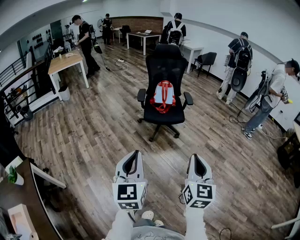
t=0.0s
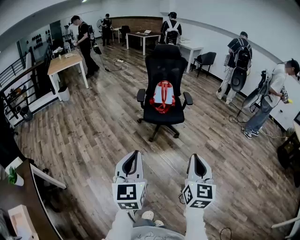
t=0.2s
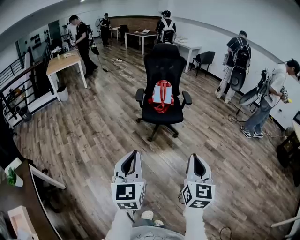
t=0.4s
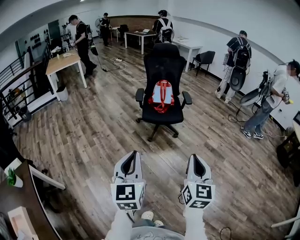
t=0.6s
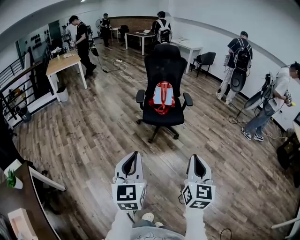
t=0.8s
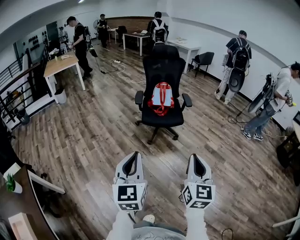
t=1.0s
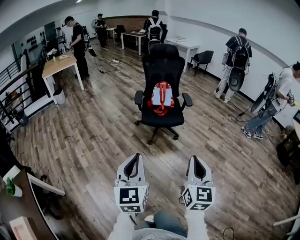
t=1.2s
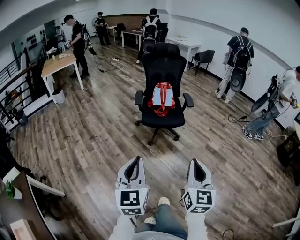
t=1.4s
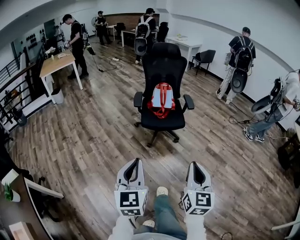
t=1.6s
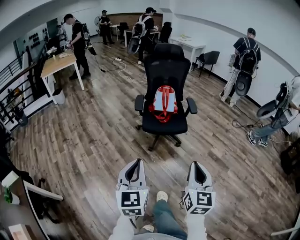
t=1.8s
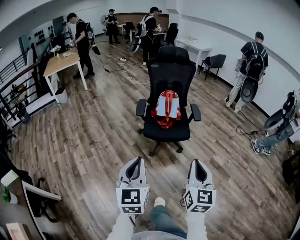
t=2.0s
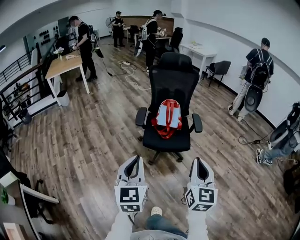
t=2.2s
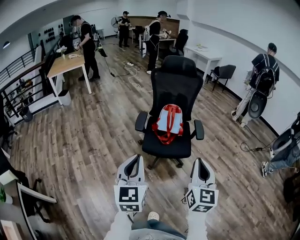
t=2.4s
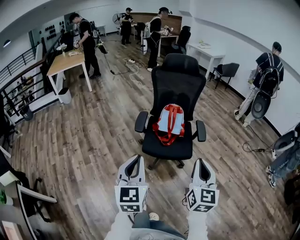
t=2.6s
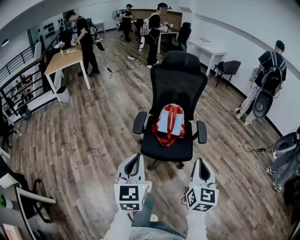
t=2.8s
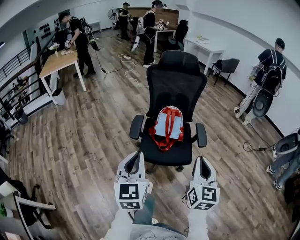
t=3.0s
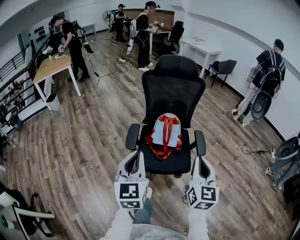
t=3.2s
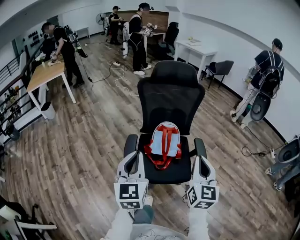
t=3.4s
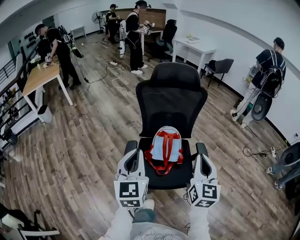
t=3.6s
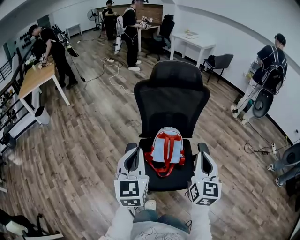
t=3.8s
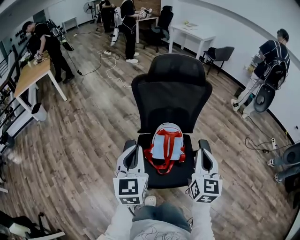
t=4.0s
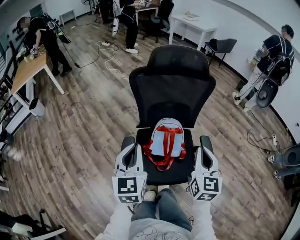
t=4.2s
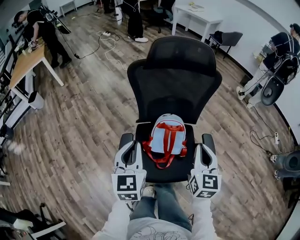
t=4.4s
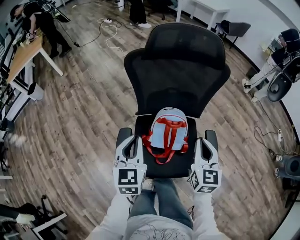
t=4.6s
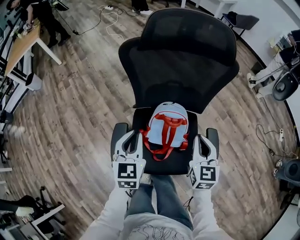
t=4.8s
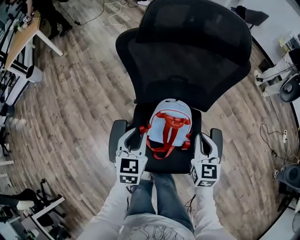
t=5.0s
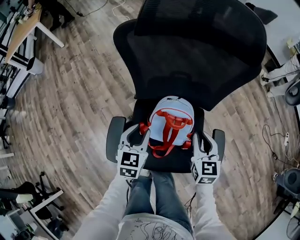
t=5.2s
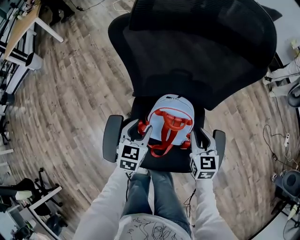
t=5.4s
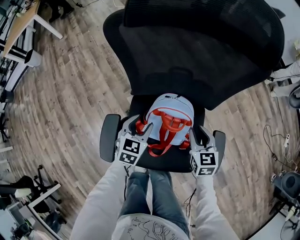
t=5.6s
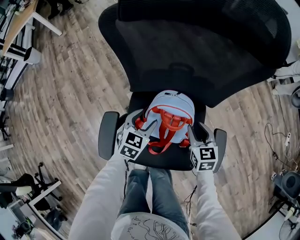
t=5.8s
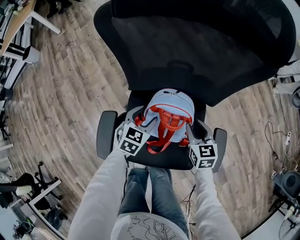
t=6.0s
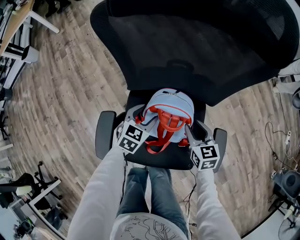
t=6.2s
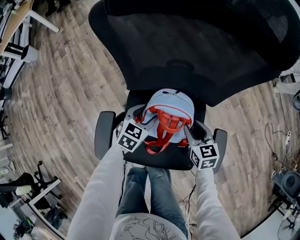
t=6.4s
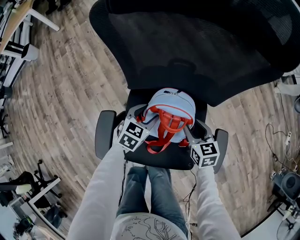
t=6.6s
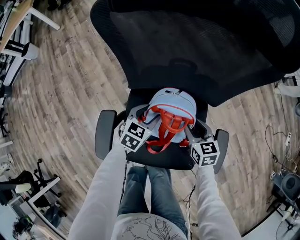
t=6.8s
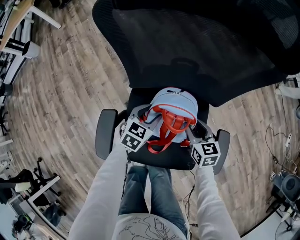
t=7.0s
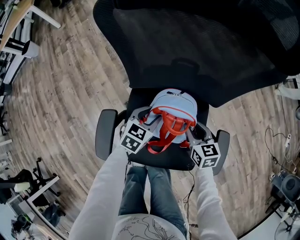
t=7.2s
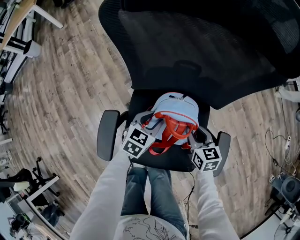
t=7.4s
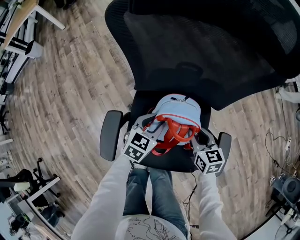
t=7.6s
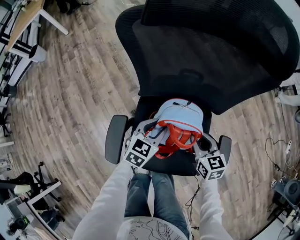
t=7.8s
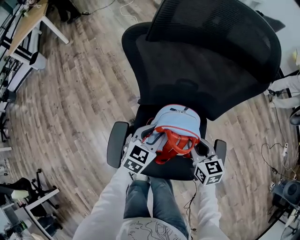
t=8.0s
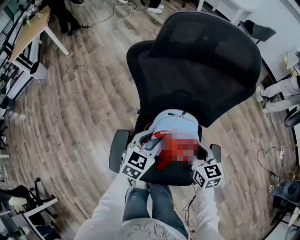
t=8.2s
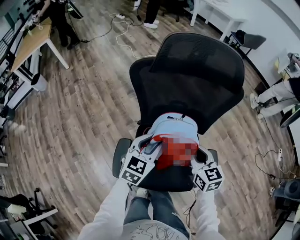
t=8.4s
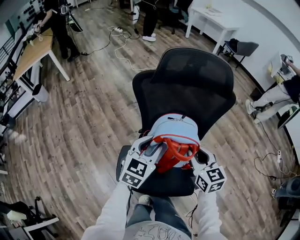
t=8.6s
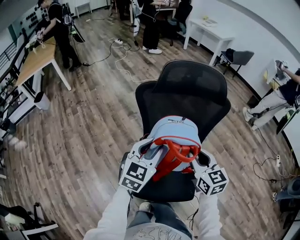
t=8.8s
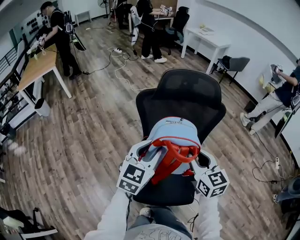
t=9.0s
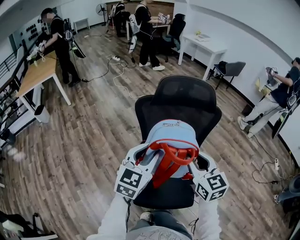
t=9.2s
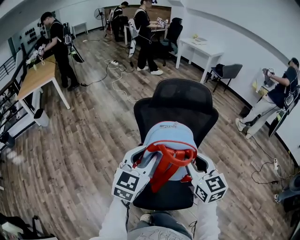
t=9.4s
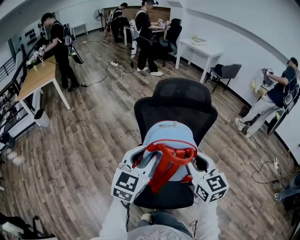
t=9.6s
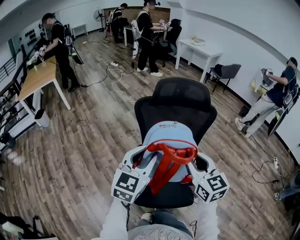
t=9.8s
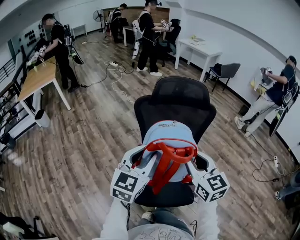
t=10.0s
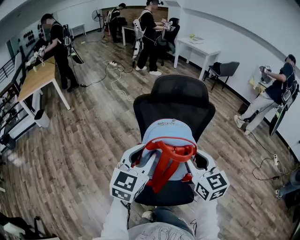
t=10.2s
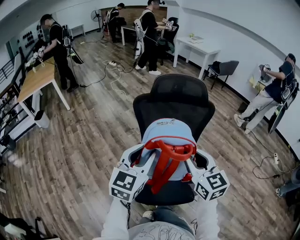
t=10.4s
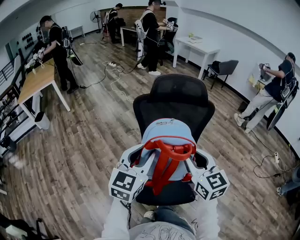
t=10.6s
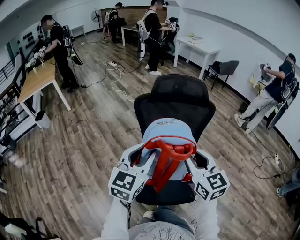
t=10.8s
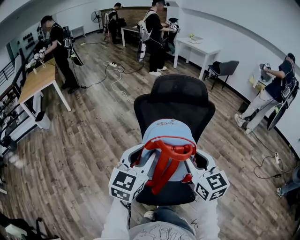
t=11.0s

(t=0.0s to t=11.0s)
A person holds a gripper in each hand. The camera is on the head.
t=0.0s - t=1.6s: The grippers both shift forward by approximately 10 cm.
t=1.6s - t=3.2s: The two grippers travel together, forward, some 50 cm.
t=3.2s - t=4.8s: Both grippers travel together forward and downward, about 40 cm. The right gripper swivels approximately 20 degrees. Meanwhile the left gripper rotates some 20 degrees.
t=4.8s - t=6.2s: Both grippers move downward, about 25 cm. The left gripper swivels some 30 degrees, and opens. The right gripper swivels some 30 degrees, and opens its fingers.
t=6.2s - t=7.8s: The left gripper is displaced upward by about 5 cm, and closes.
t=7.8s - t=9.4s: Both grippers travel together upward, about 40 cm. The right gripper turns by some 30 degrees. The left gripper swivels roughly 30 degrees.
t=9.4s - t=11.0s: The left gripper ends up approximately 5 cm from where it was.

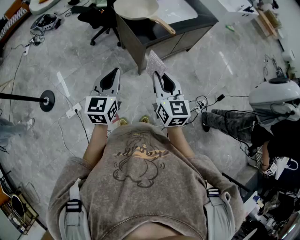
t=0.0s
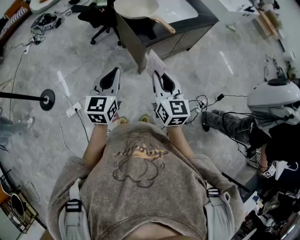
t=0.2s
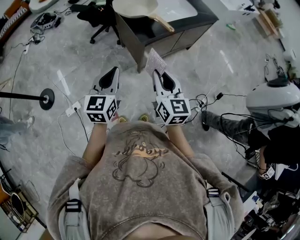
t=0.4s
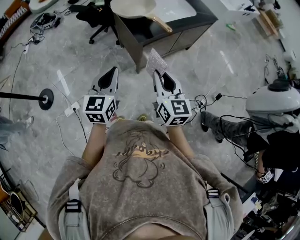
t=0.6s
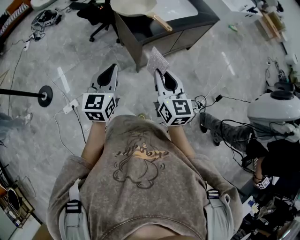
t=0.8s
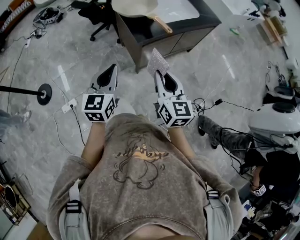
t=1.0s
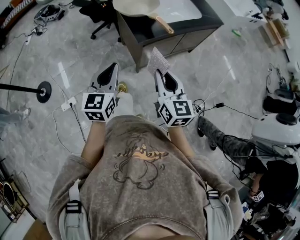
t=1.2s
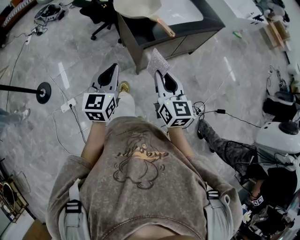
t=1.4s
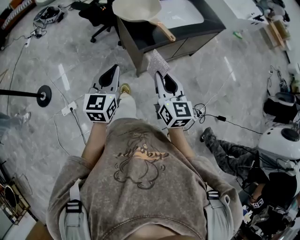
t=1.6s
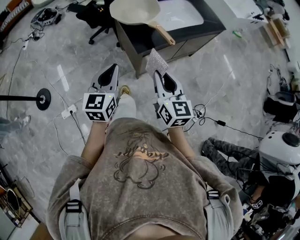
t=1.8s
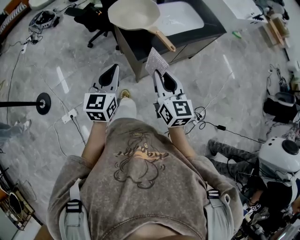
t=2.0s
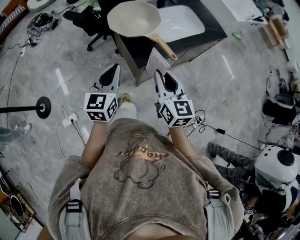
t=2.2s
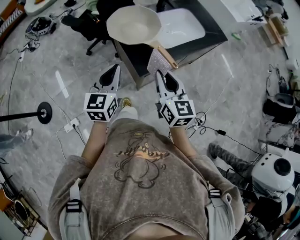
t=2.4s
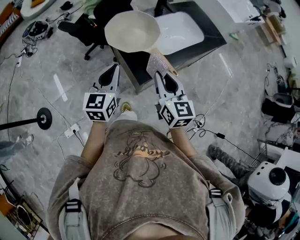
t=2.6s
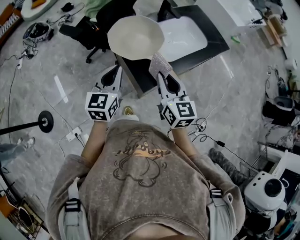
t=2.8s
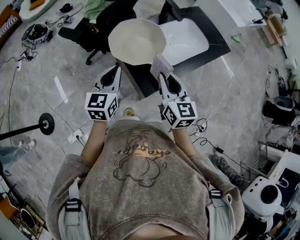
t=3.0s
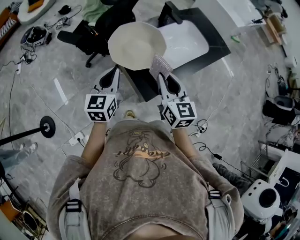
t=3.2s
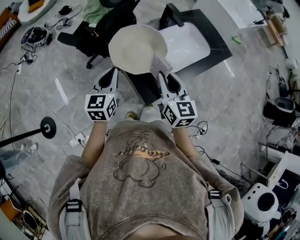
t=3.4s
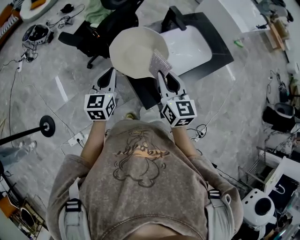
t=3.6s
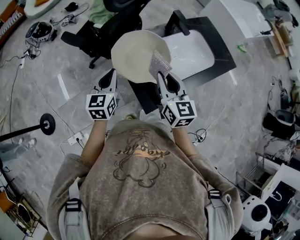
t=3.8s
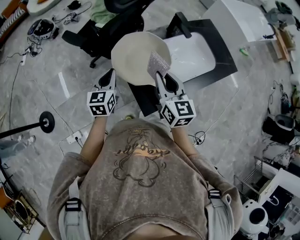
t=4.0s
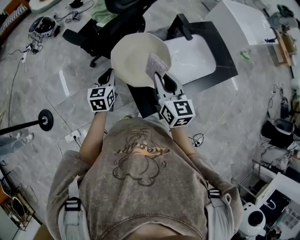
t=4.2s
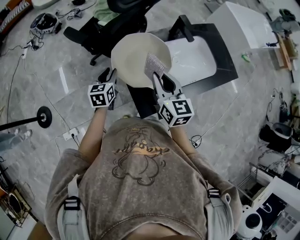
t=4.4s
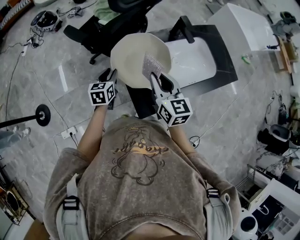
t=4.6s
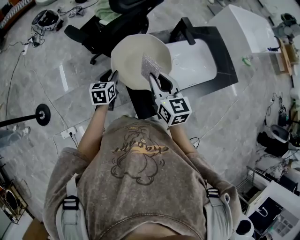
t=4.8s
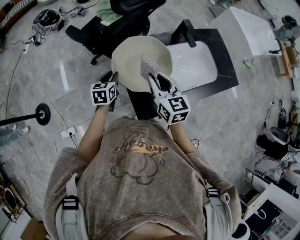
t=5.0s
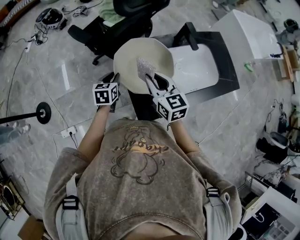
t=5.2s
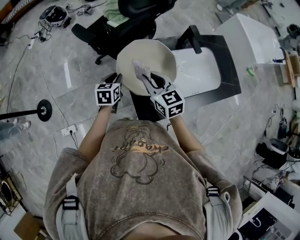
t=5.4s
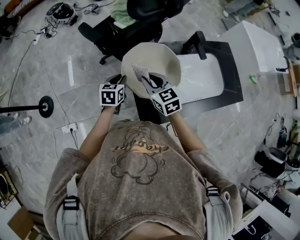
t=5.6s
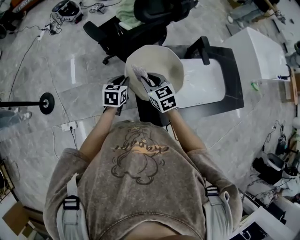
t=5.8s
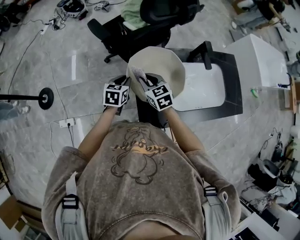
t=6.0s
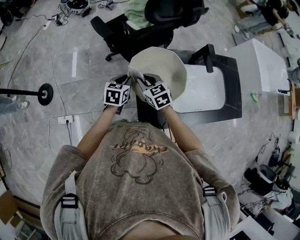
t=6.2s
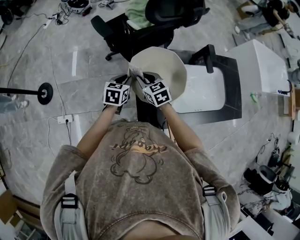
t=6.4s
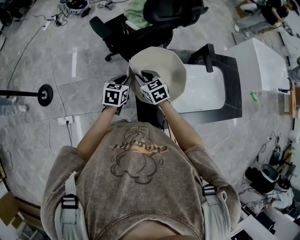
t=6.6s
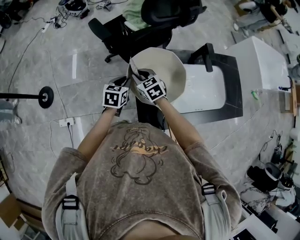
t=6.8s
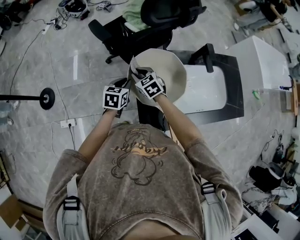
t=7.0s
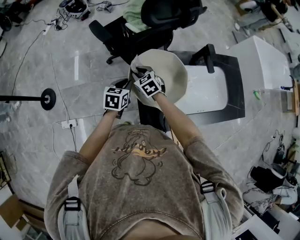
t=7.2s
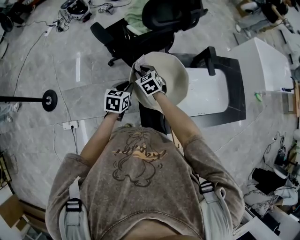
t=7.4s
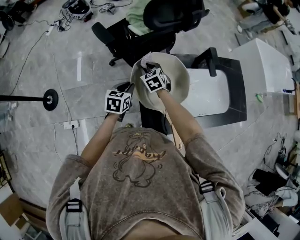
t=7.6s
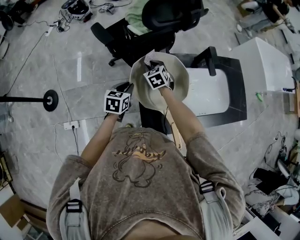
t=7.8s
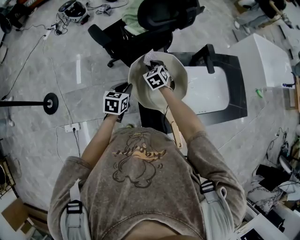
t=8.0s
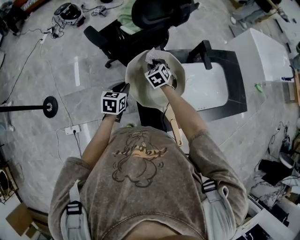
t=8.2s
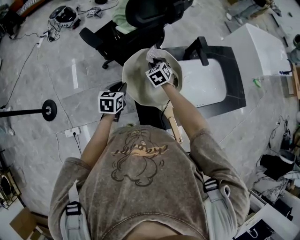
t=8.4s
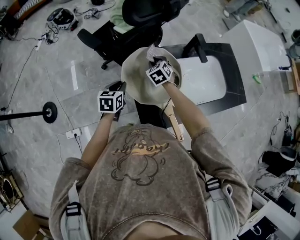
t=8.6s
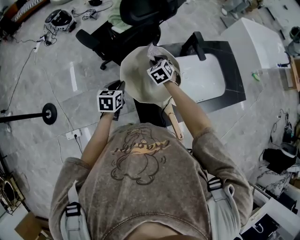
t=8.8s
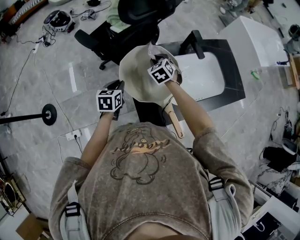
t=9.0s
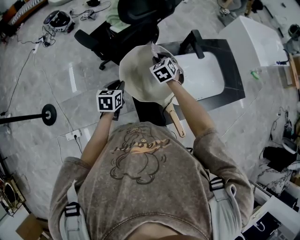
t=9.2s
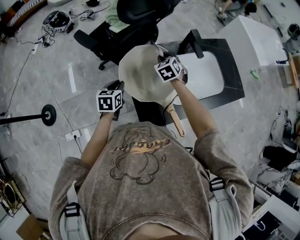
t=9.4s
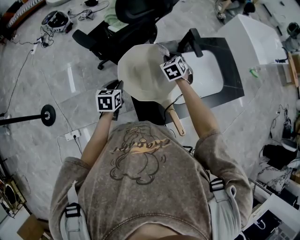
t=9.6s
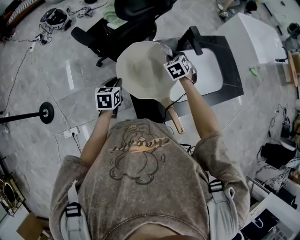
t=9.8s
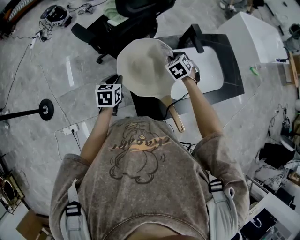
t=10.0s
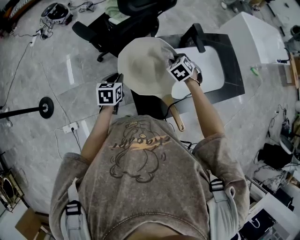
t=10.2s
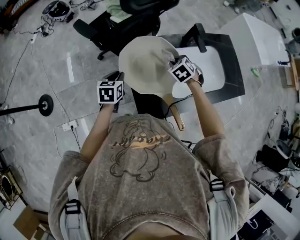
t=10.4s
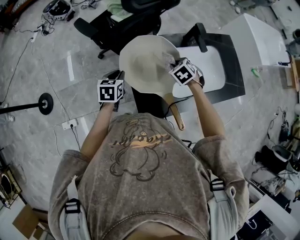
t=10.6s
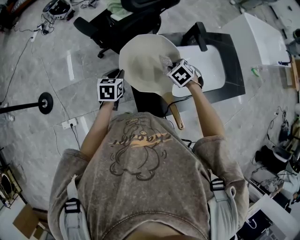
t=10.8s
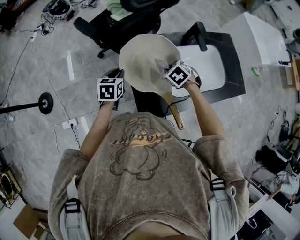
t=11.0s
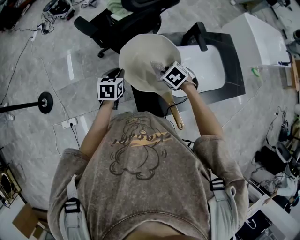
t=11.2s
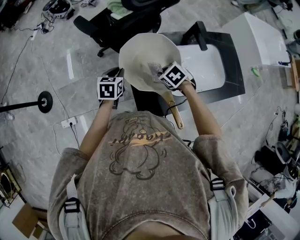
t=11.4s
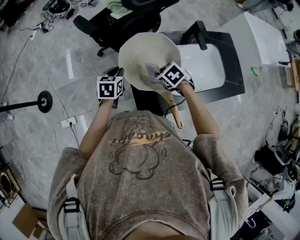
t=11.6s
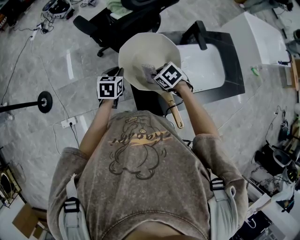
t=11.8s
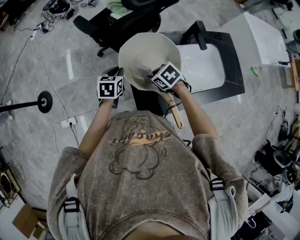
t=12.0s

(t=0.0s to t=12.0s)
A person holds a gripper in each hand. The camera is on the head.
t=0.0s - t=1.6s: The two grippers go approximately 10 cm forward.
t=1.6s - t=3.0s: The grippers both shift forward by some 30 cm.
t=3.0s - t=4.4s: The left gripper goes approximately 20 cm forward and downward, turns by roughly 20 degrees, and opens. Meanwhile the right gripper shifts approximately 15 cm forward.
t=4.4s - t=6.0s: The right gripper shifts roughly 20 cm downward, to the left and forward, and rotates about 40 degrees.
t=6.0s - t=7.6s: The right gripper shifts about 10 cm forward and downward.
t=7.6s - t=9.0s: The right gripper heads to the right, covering approximately 10 cm.
t=9.0s - t=10.4s: The right gripper travels to the right by about 10 cm.
t=10.4s - t=12.0s: The right gripper moves some 15 cm, and turns by roughly 30 degrees.

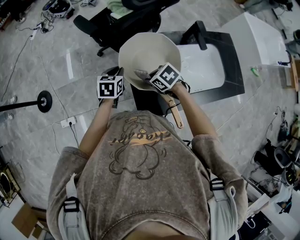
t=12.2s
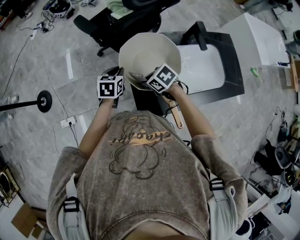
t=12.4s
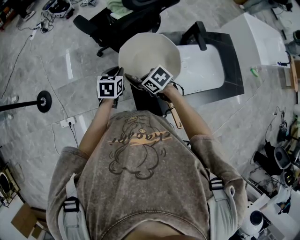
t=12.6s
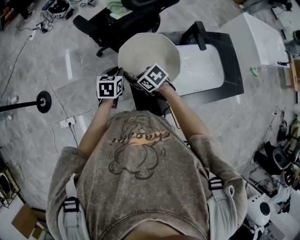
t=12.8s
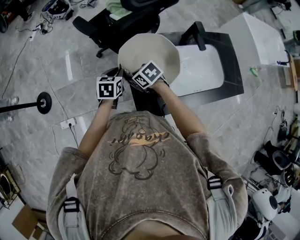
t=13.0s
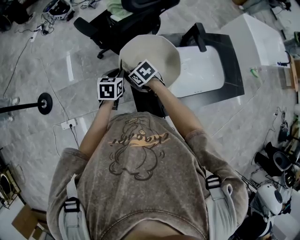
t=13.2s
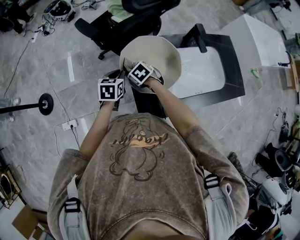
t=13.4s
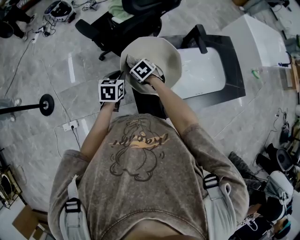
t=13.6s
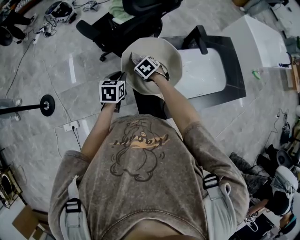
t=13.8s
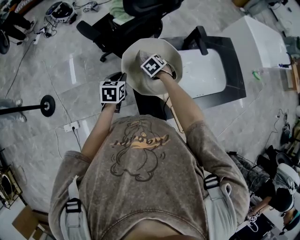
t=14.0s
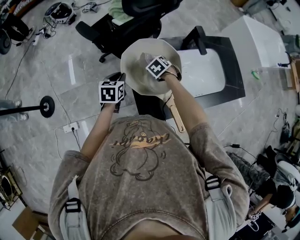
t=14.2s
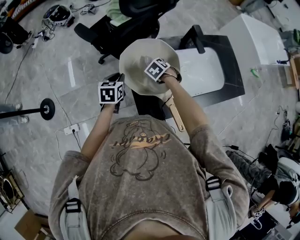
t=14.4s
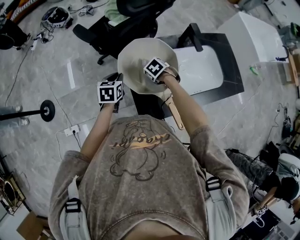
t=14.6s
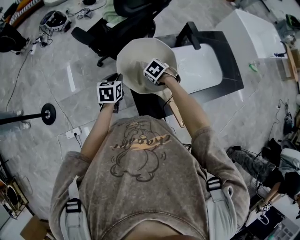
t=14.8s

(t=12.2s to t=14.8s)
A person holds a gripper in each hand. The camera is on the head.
t=12.2s - t=13.4s: The right gripper moves forward and downward, about 10 cm.
t=13.4s - t=14.8s: The right gripper ends up about 10 cm from where it was.
